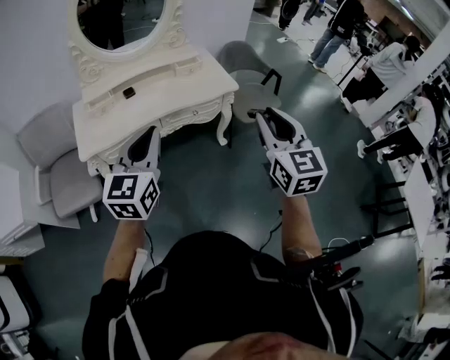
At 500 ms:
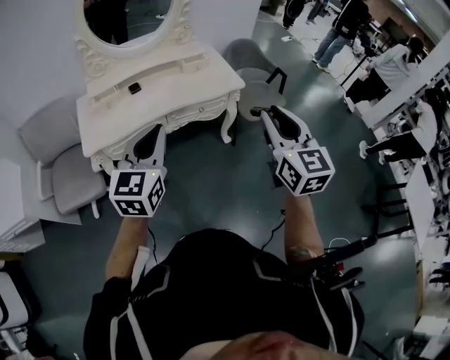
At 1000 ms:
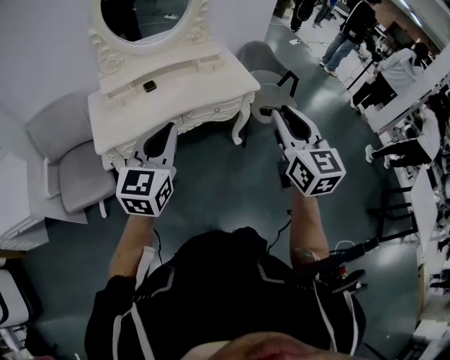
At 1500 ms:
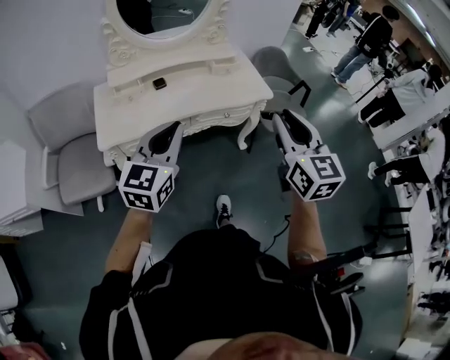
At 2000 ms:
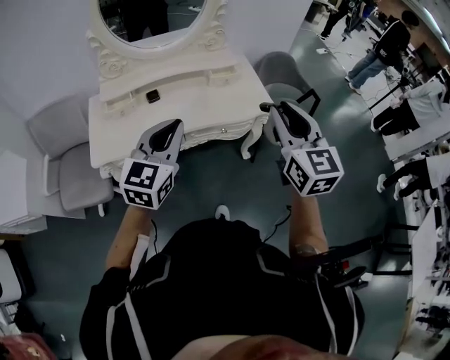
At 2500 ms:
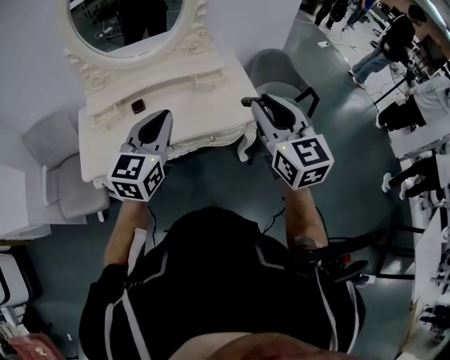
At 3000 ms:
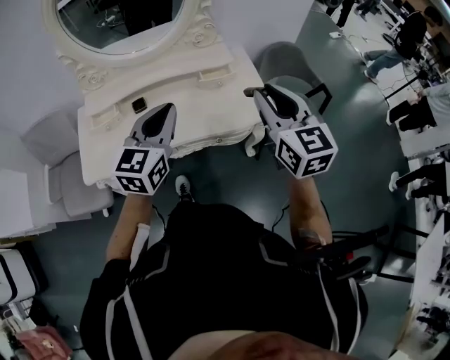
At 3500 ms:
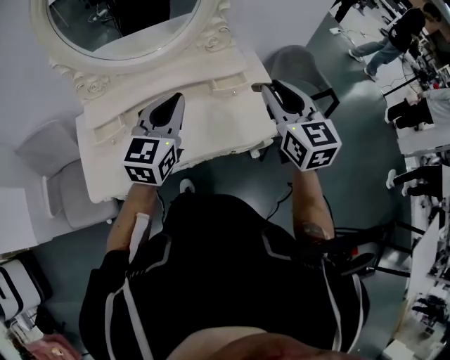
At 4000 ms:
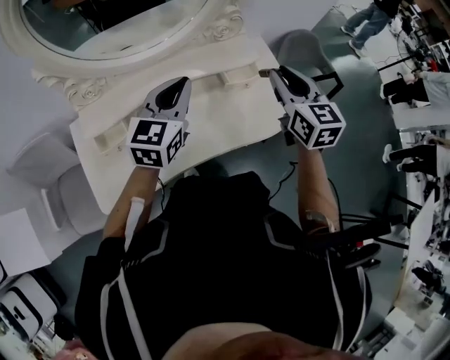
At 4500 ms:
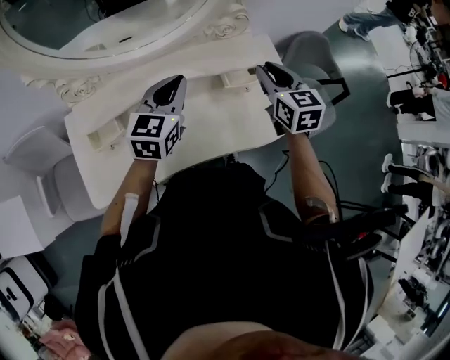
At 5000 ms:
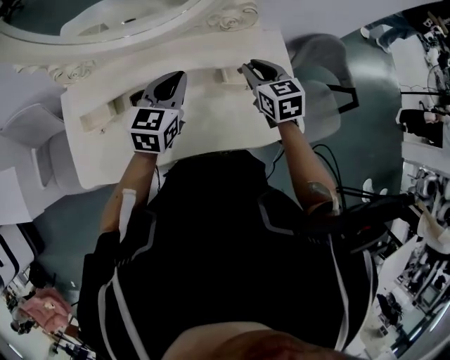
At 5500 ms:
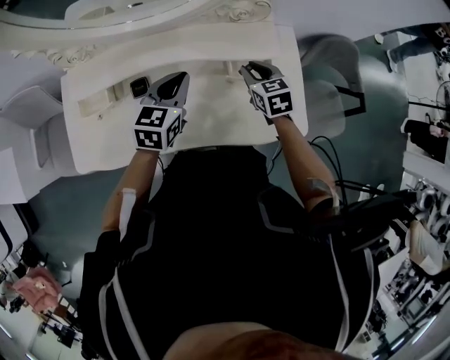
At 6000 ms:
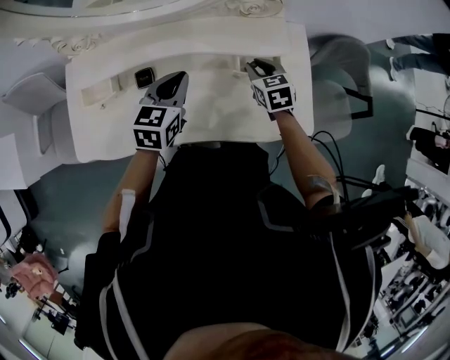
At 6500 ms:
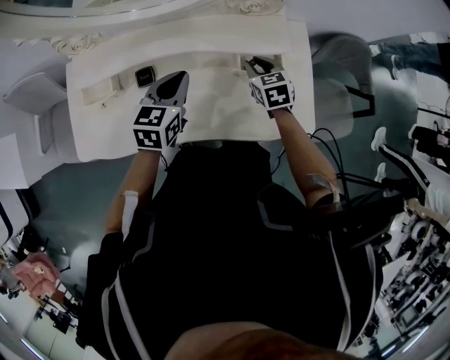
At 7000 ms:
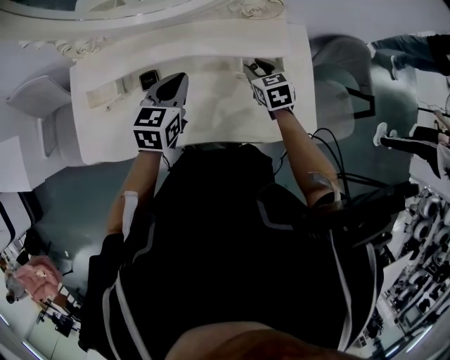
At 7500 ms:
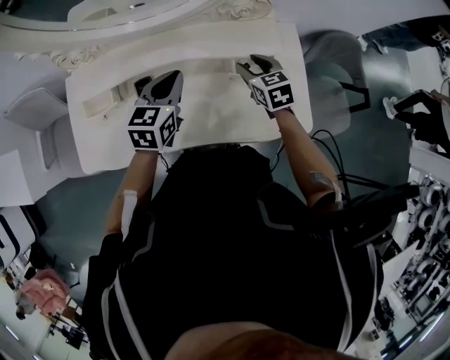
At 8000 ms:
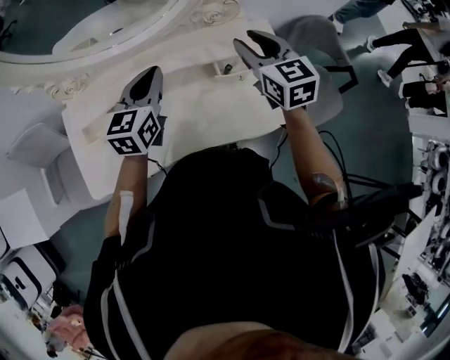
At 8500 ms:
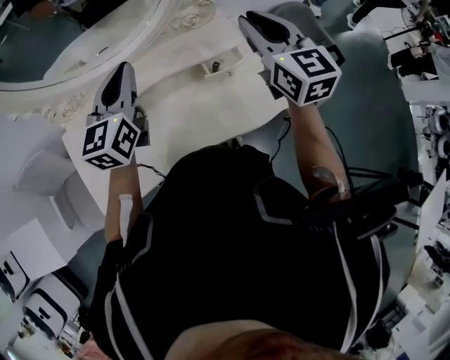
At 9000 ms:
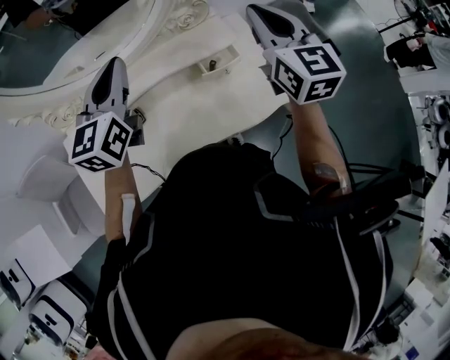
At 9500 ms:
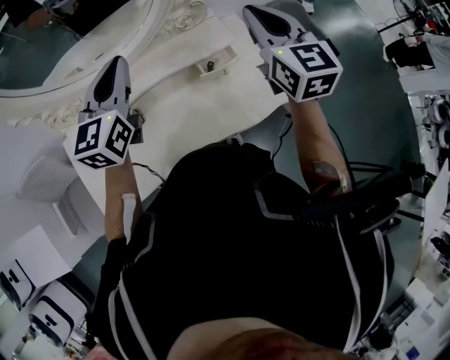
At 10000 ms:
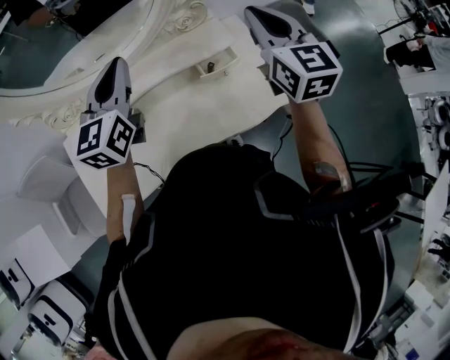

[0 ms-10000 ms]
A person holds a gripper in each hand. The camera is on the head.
0 ms to 2000 ms: Both grippers travel together forward, approximately 20 cm.
2000 ms to 4000 ms: Both grippers travel together forward, approximately 35 cm.
4000 ms to 6000 ms: The left gripper moves downward, about 15 cm, and changes its angle by approximately 30 degrees. The right gripper moves downward and forward, approximately 30 cm, and turns by roughly 40 degrees.
6000 ms to 8000 ms: The right gripper moves upward, approximately 20 cm, and turns by roughly 20 degrees. The left gripper goes about 10 cm upward.
8000 ms to 10000 ms: The right gripper travels upward and to the right by approximately 15 cm, and closes up. Meanwhile the left gripper goes about 10 cm upward.

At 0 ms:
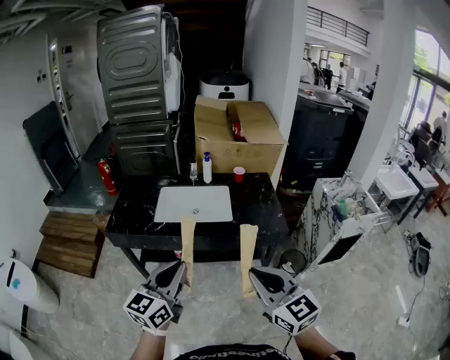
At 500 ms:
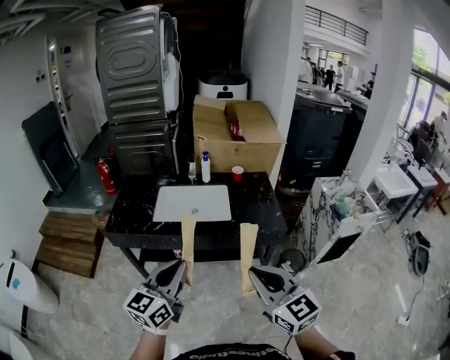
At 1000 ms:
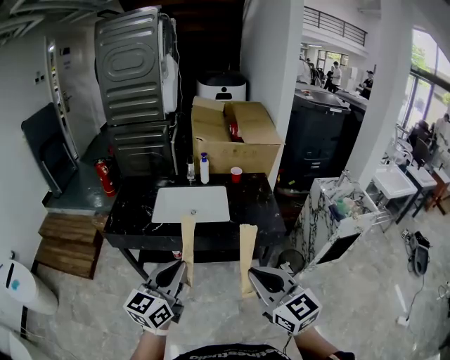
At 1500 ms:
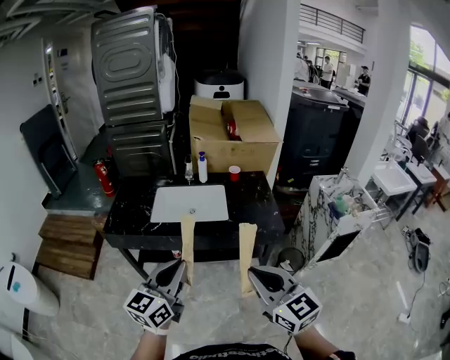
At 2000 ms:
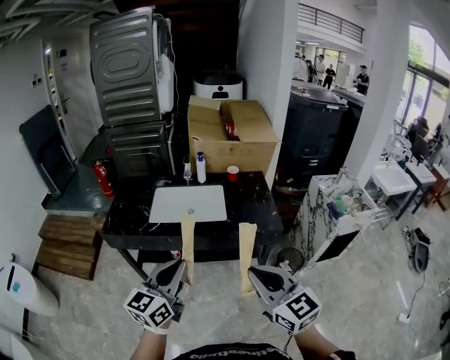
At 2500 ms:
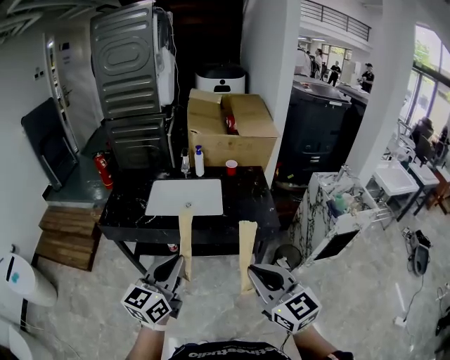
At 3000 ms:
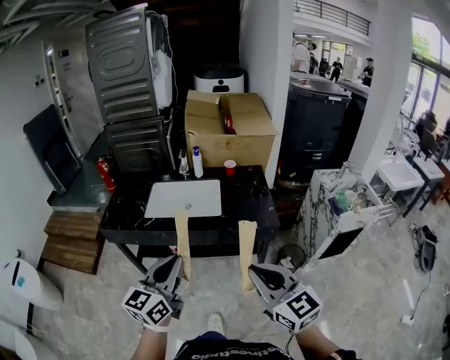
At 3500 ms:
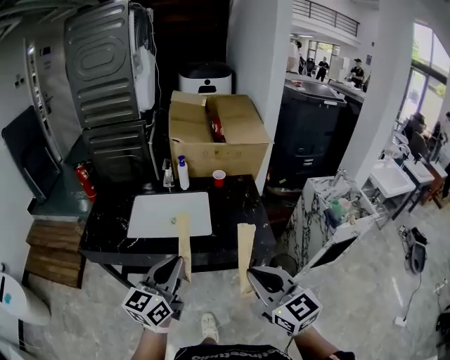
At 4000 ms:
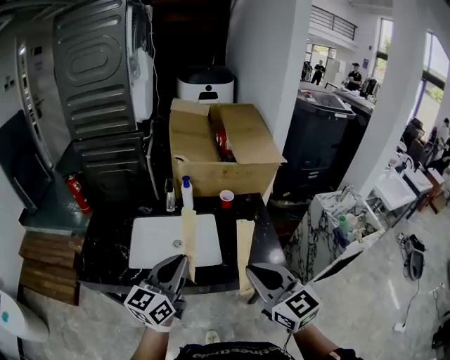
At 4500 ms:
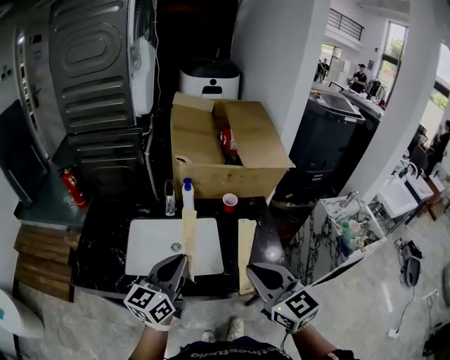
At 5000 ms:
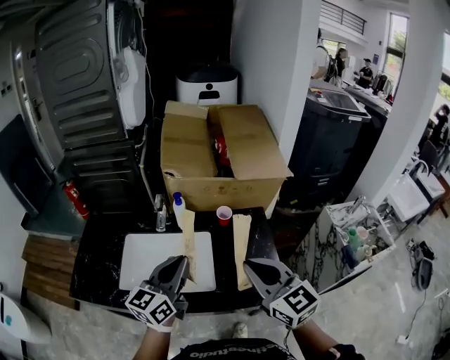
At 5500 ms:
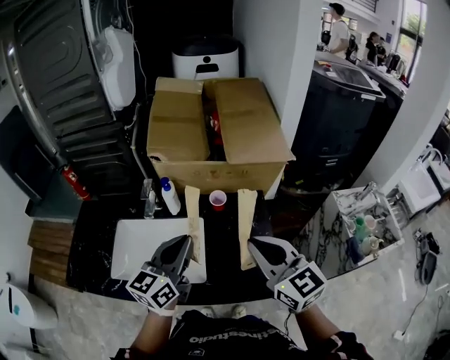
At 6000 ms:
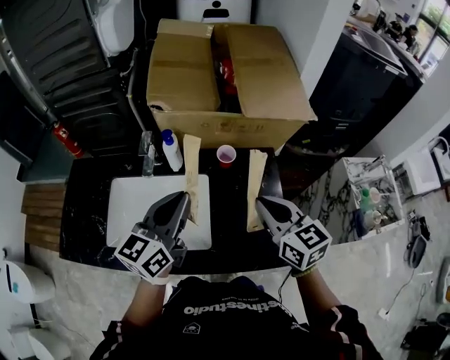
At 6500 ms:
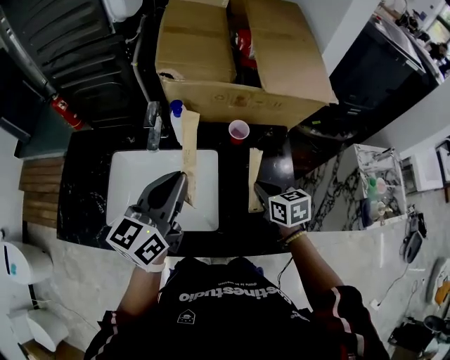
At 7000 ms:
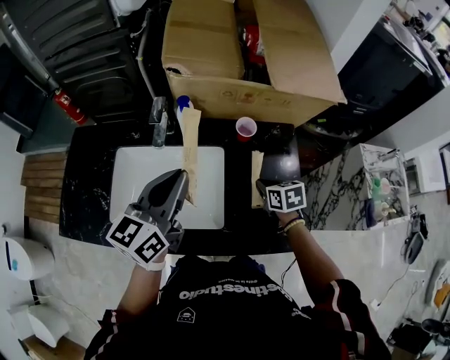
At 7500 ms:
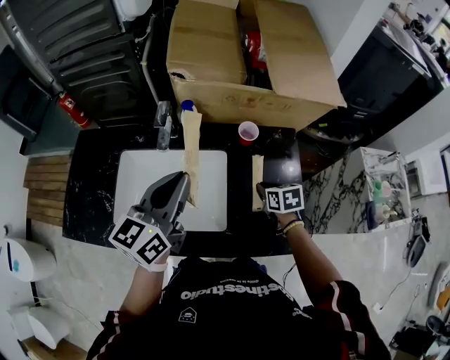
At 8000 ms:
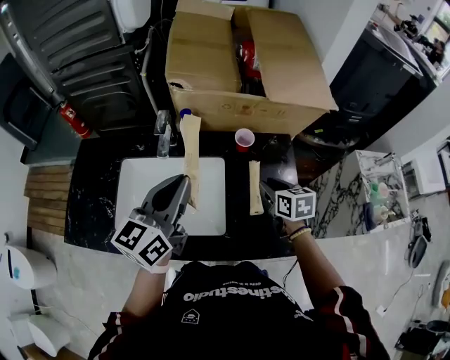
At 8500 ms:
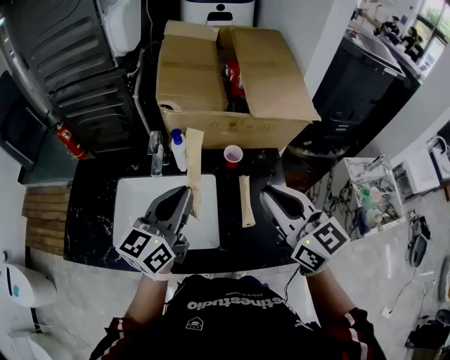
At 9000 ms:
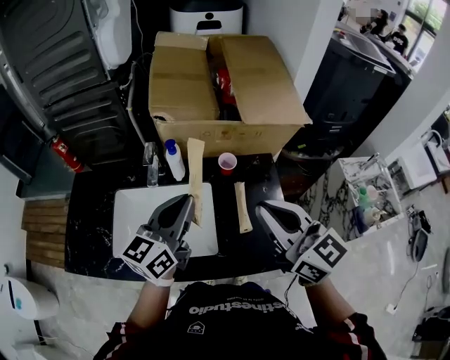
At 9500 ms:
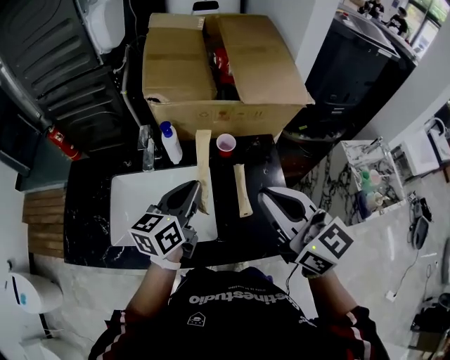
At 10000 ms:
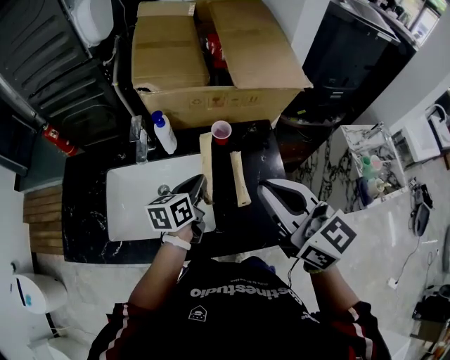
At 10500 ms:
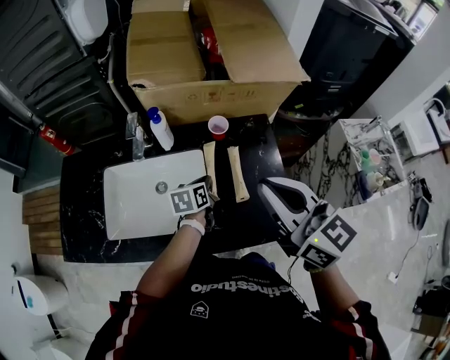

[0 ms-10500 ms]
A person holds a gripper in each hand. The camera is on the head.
0 ms to 2000 ms: There are only small adjustments of the grippers.
2000 ms to 4000 ms: Both grippers move forward, approximately 30 cm.
4000 ms to 6500 ms: The right gripper travels forward and downward by approximately 40 cm, and tips its fingers downward by about 30 degrees. The left gripper shifts about 25 cm forward.
6500 ms to 8500 ms: The right gripper heads upward, covering approximately 25 cm, and tilts its fingers roughly 40 degrees upward.
8500 ms to 10500 ms: The left gripper travels downward by approximately 25 cm, and tips its fingers downward by roughly 40 degrees.

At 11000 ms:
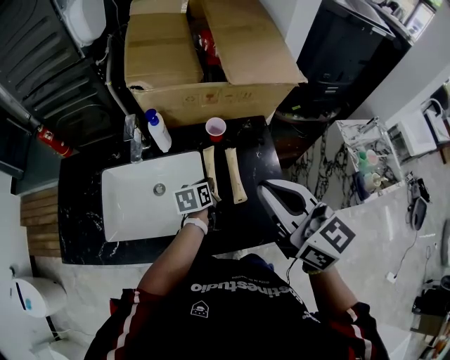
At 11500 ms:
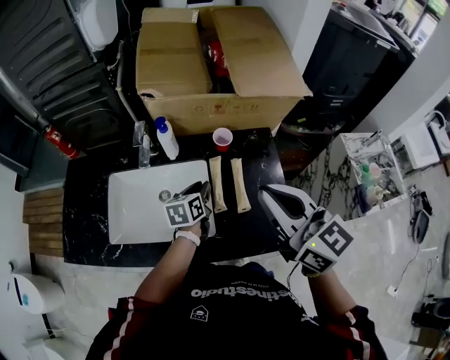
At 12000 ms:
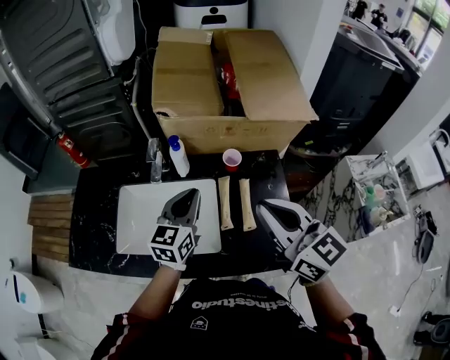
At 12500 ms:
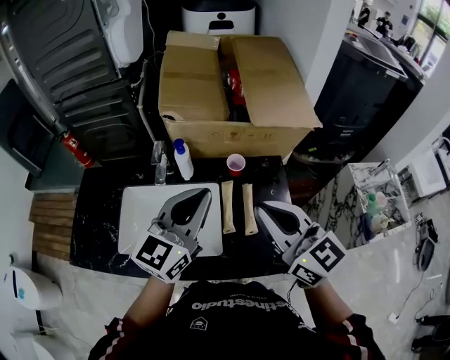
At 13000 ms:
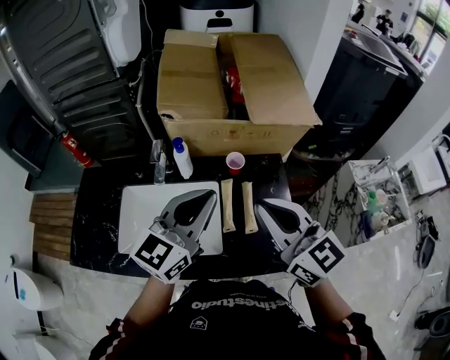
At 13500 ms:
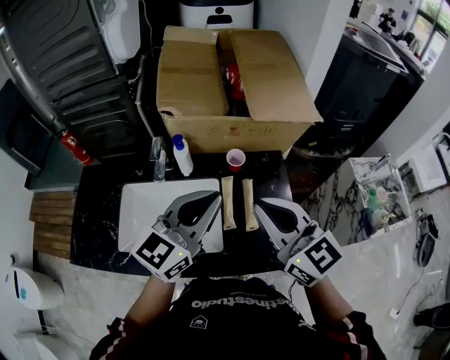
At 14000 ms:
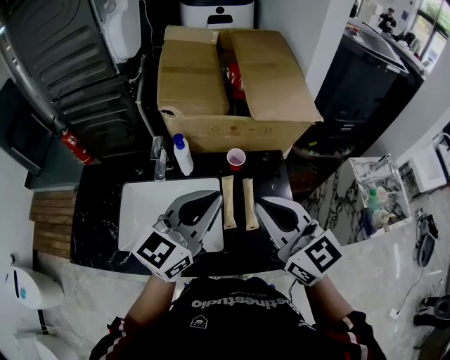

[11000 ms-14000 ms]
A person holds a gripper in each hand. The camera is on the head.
11000 ms to 12500 ms: The left gripper moves upward, approximately 35 cm, and points its fingers some 40 degrees further upward.
12500 ms to 14000 ms: The grippers make only small movements.

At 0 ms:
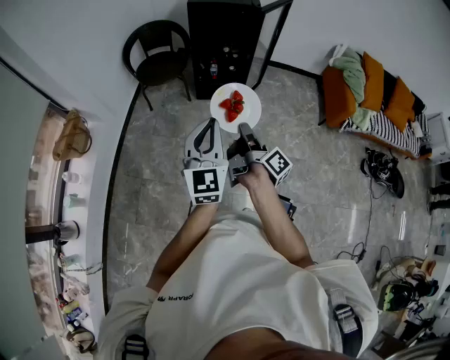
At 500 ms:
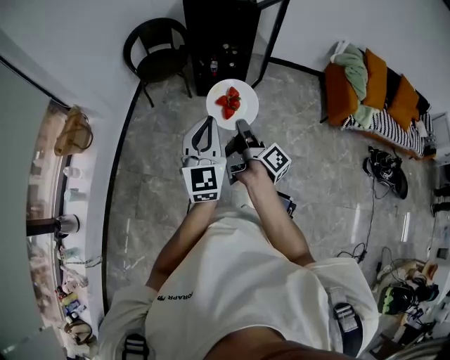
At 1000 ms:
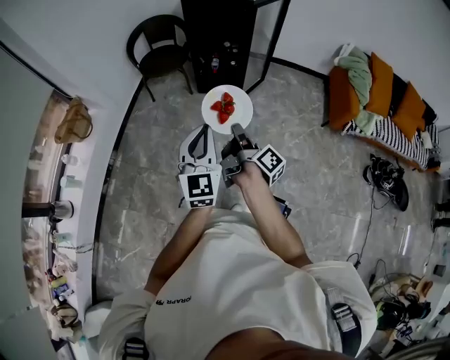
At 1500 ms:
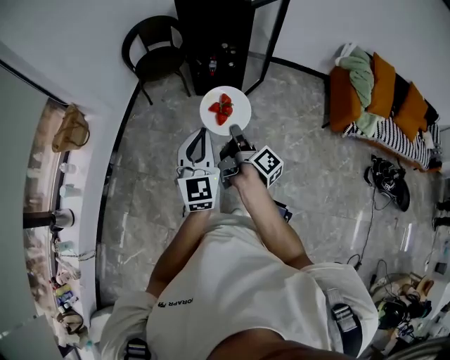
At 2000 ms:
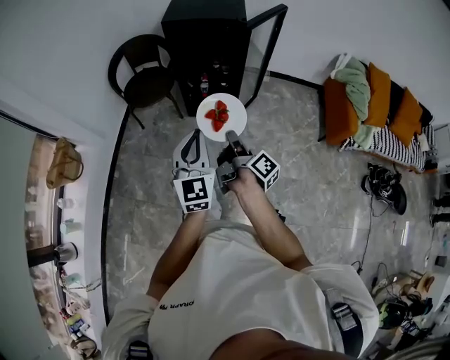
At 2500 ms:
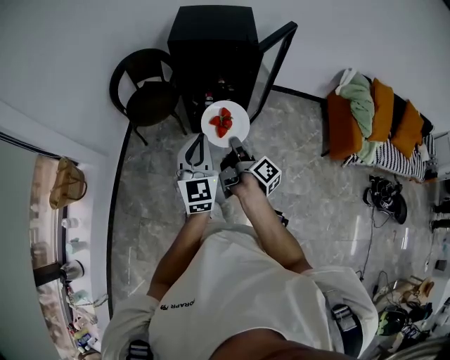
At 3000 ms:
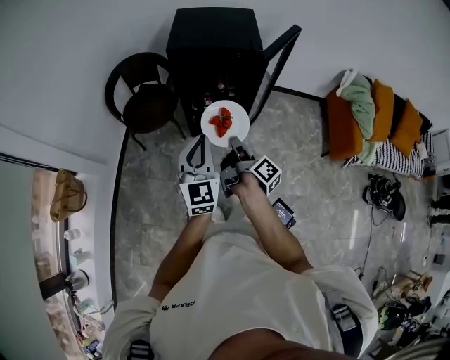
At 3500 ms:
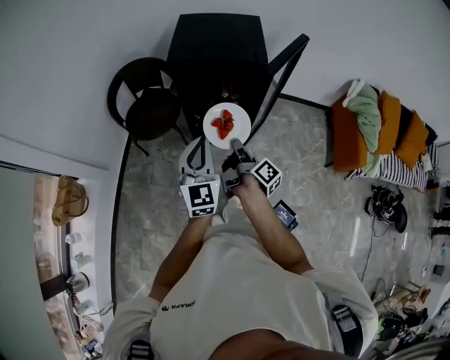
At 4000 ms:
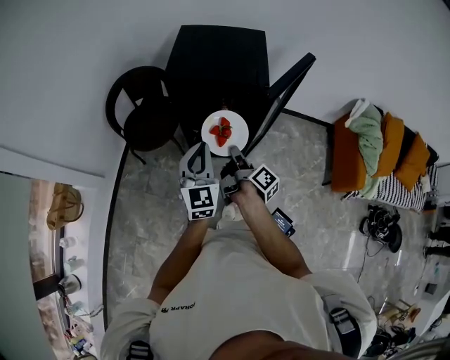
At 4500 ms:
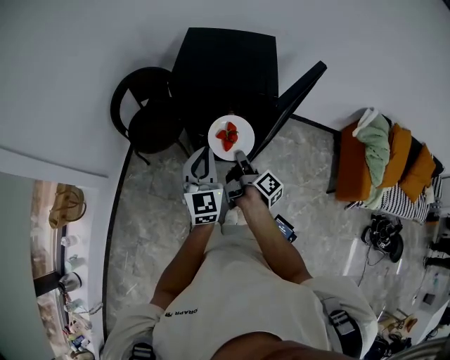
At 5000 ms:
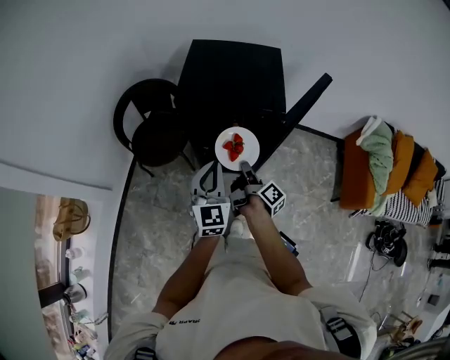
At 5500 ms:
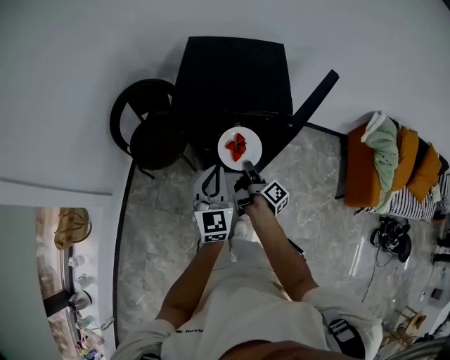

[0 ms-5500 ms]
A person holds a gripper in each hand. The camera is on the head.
0 ms to 2000 ms: The left gripper shifts by some 20 cm.
2000 ms to 3500 ms: The left gripper ends up some 25 cm from where it was.
3500 ms to 5500 ms: The left gripper changes place by roughly 15 cm.
